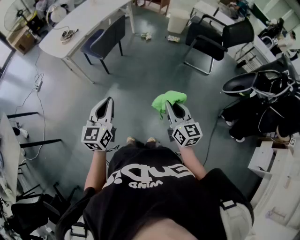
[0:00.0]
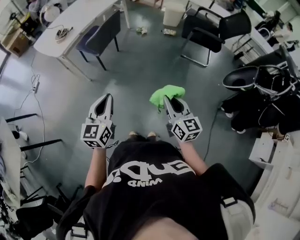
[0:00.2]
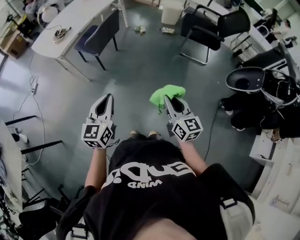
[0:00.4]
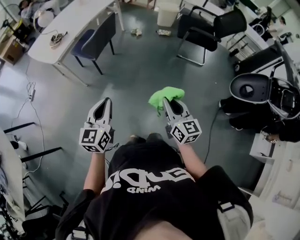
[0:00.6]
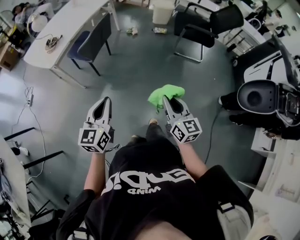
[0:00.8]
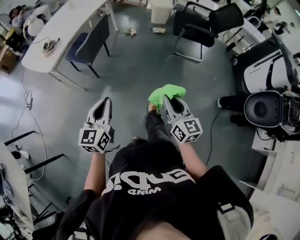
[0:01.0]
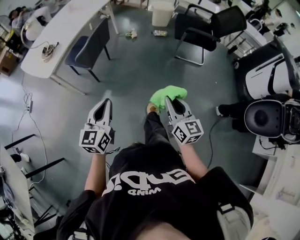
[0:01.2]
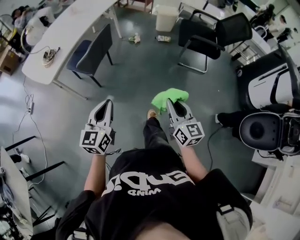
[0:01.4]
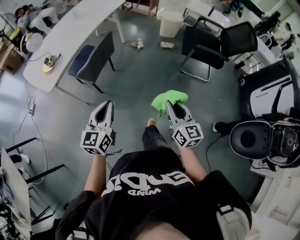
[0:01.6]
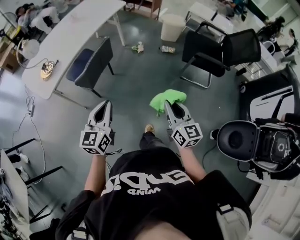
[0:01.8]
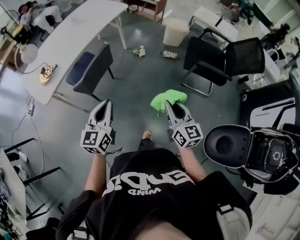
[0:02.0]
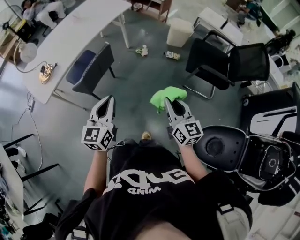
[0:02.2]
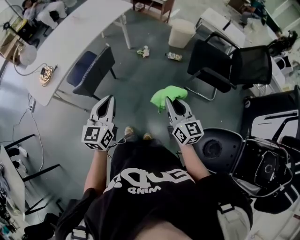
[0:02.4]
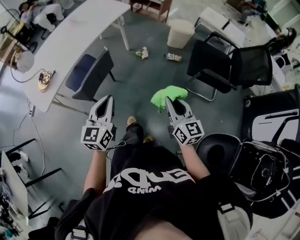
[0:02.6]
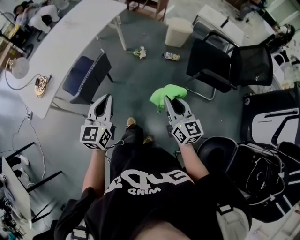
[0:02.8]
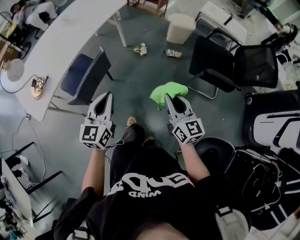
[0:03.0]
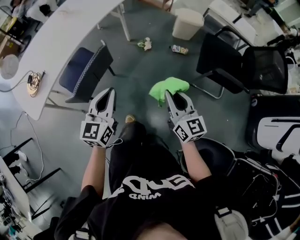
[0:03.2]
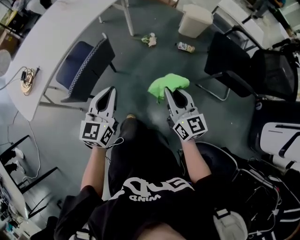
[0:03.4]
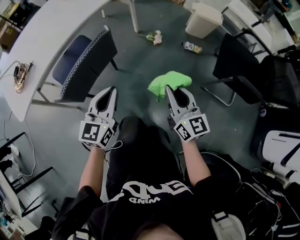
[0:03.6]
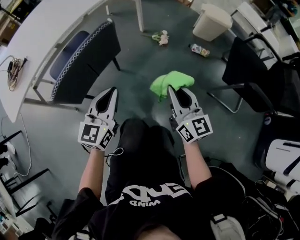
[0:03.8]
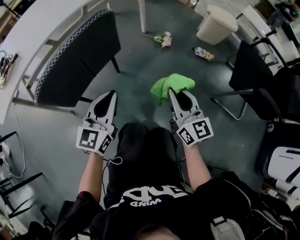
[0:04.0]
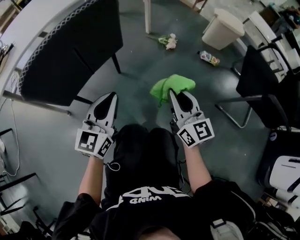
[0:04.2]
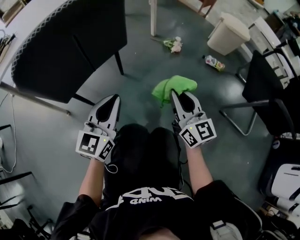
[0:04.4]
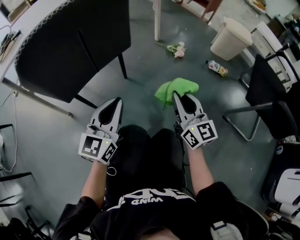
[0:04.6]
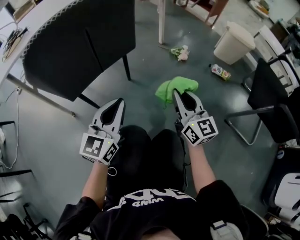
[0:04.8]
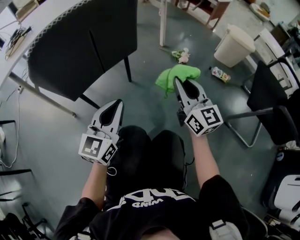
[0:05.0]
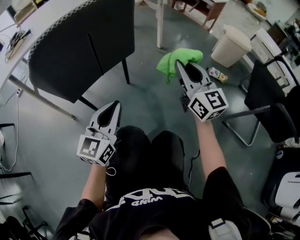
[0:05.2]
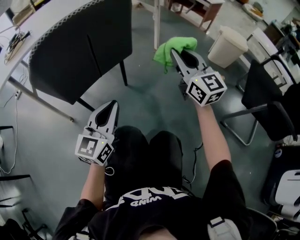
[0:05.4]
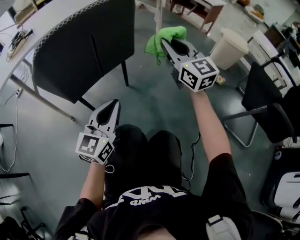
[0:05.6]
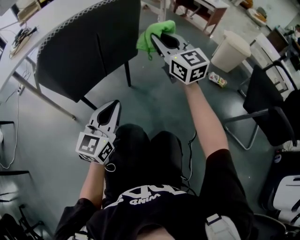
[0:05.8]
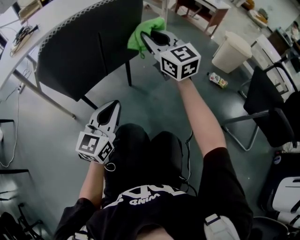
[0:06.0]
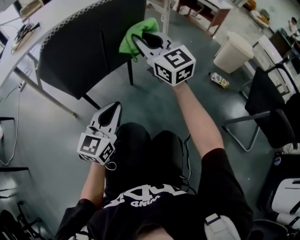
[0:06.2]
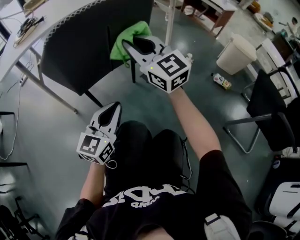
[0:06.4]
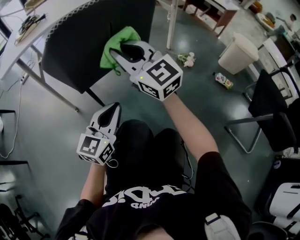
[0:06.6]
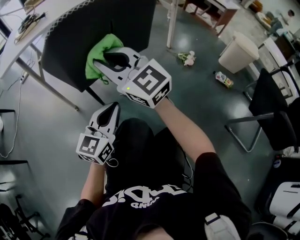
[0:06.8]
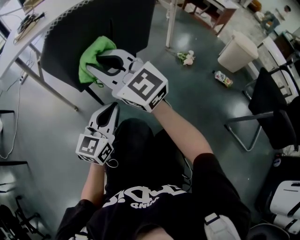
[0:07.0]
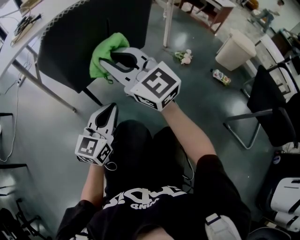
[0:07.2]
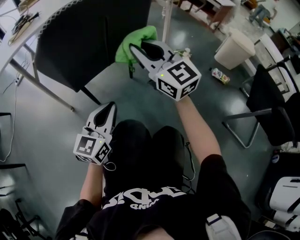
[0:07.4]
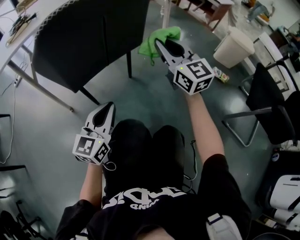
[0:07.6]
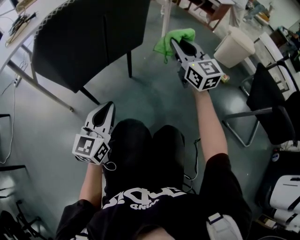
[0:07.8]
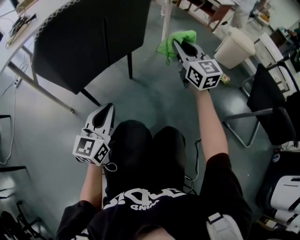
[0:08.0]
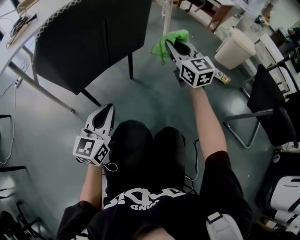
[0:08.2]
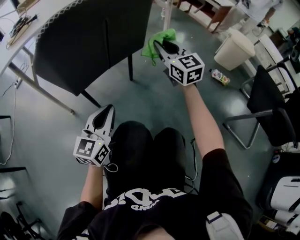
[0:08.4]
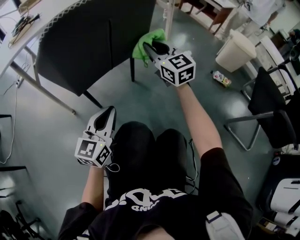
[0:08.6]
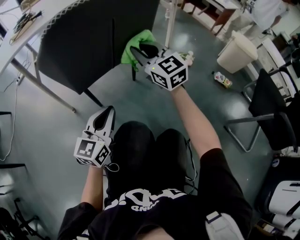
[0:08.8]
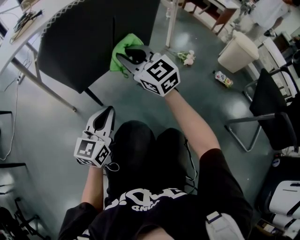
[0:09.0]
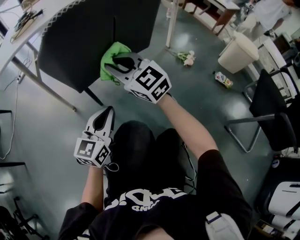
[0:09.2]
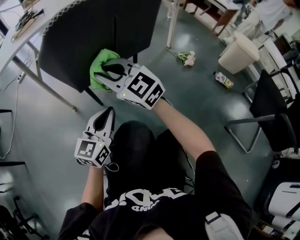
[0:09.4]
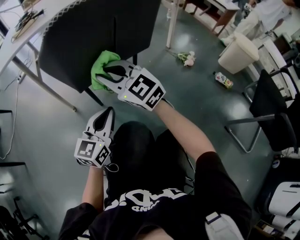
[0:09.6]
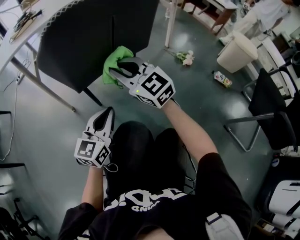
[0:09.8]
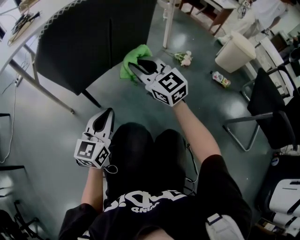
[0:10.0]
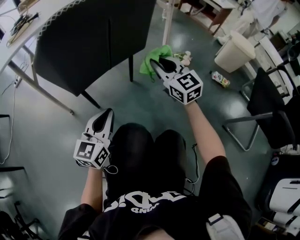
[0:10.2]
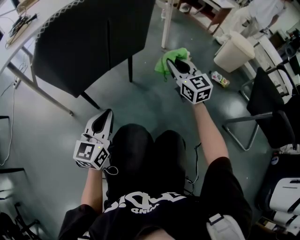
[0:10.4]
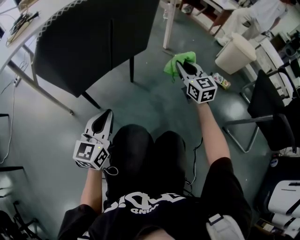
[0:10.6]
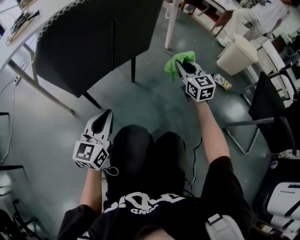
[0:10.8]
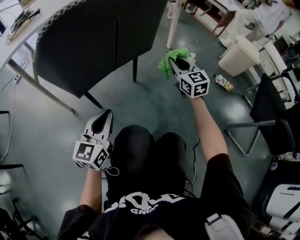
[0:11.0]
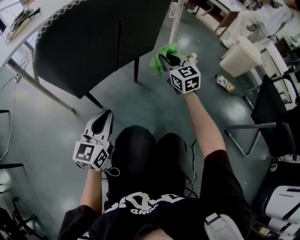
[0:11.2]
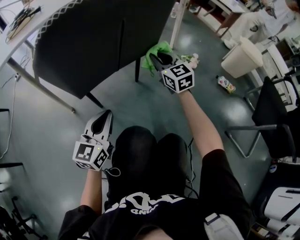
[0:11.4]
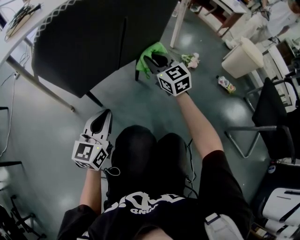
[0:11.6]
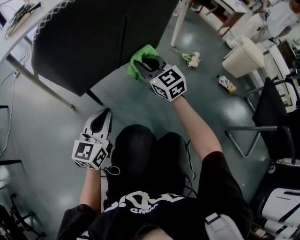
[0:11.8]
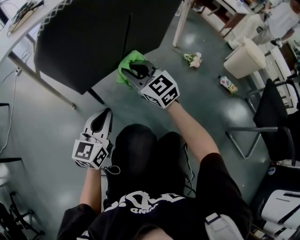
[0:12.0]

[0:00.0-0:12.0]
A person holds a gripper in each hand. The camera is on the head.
0:00.0 to 0:01.6: Both grippers travel together forward, about 25 cm.
0:01.6 to 0:03.0: The grippers both shift forward by approximately 30 cm.
0:03.0 to 0:04.4: The right gripper moves downward and forward, about 50 cm. The left gripper goes roughly 40 cm downward.
0:04.4 to 0:06.0: The right gripper travels forward, to the left and upward by about 25 cm, and rotates about 30 degrees.
0:06.0 to 0:07.6: The left gripper changes place by about 5 cm; the right gripper is displaced downward by roughly 5 cm, and moves approximately 20 cm to the left and comes back.
0:07.6 to 0:09.0: The right gripper shifts some 15 cm to the left, and turns by approximately 20 degrees.
0:09.0 to 0:10.4: The right gripper goes some 20 cm to the right, and swivels approximately 30 degrees.
0:10.4 to 0:12.0: The right gripper goes some 25 cm to the left, and swivels roughly 30 degrees.

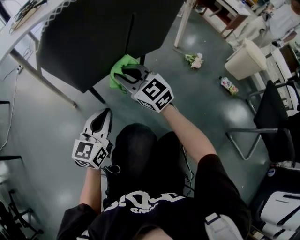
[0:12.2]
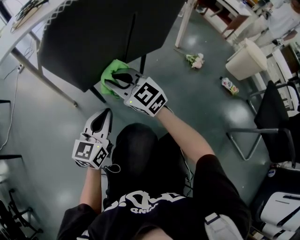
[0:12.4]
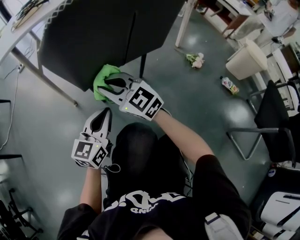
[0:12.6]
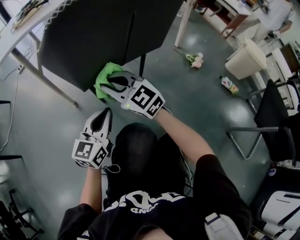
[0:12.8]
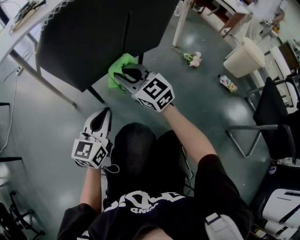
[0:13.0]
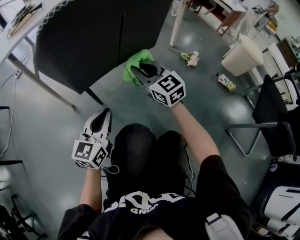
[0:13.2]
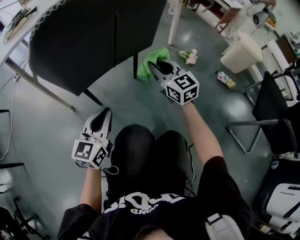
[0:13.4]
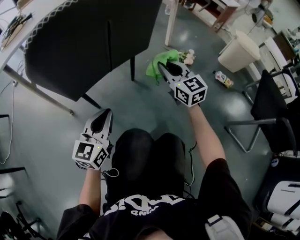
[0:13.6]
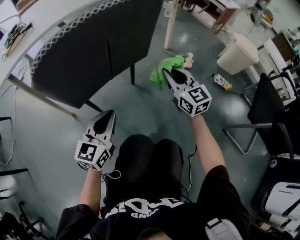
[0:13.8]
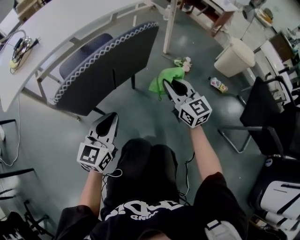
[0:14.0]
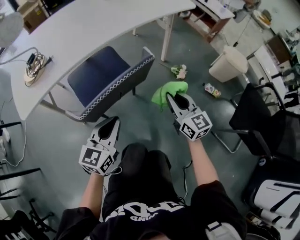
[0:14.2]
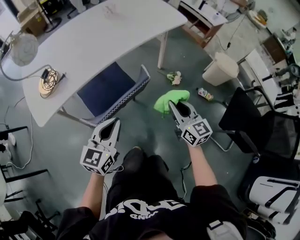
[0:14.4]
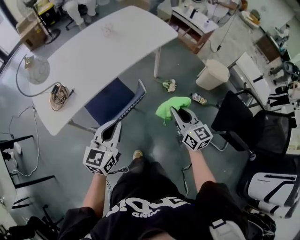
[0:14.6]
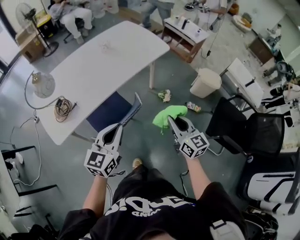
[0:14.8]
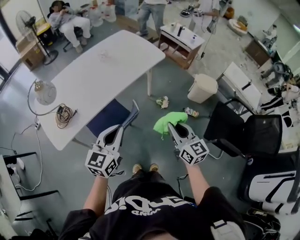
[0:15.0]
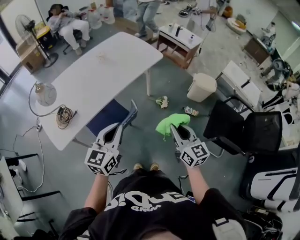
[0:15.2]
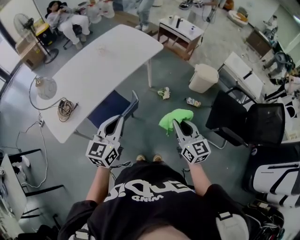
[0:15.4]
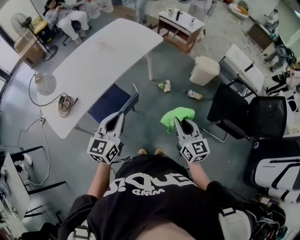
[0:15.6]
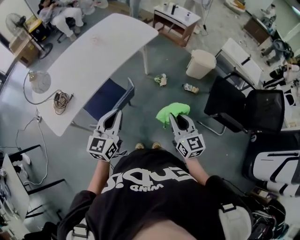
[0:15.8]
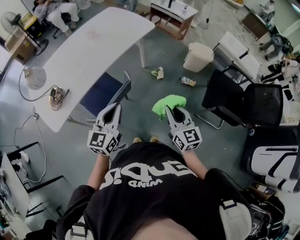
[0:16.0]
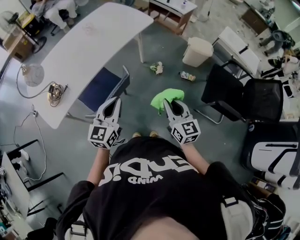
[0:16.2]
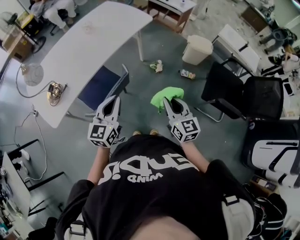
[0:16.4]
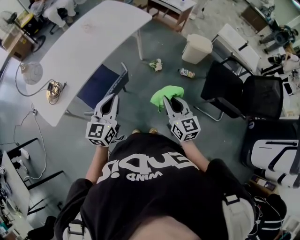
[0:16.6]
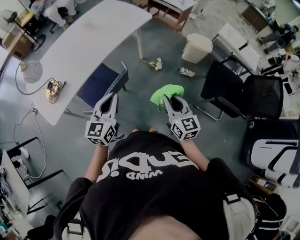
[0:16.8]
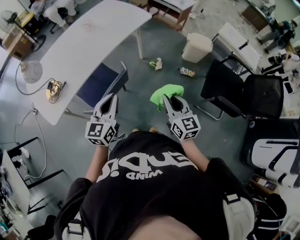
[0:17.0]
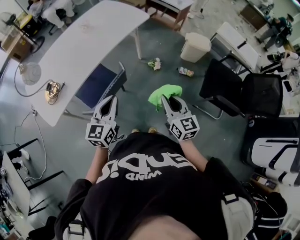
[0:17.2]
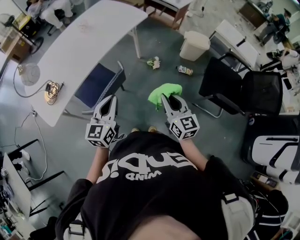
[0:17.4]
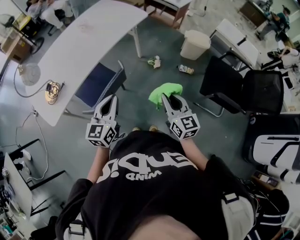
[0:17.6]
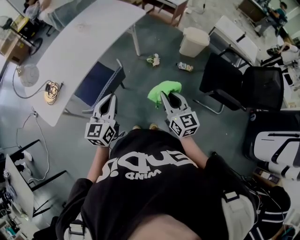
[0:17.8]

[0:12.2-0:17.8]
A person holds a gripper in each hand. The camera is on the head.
0:12.2 to 0:13.6: The right gripper heads to the right, covering some 20 cm, and turns by roughly 30 degrees.
0:13.6 to 0:15.0: Both grippers travel together upward, roughly 60 cm. The right gripper swivels about 20 degrees.
0:15.0 to 0:16.4: The right gripper is displaced backward by approximately 5 cm. Meanwhile the left gripper travels downward by about 5 cm.
0:16.4 to 0:17.8: The grippers move only a little.

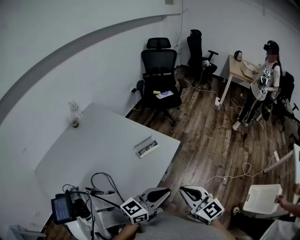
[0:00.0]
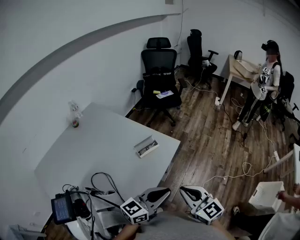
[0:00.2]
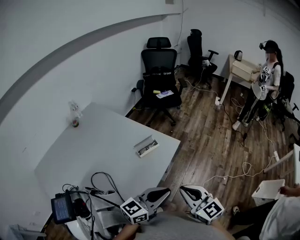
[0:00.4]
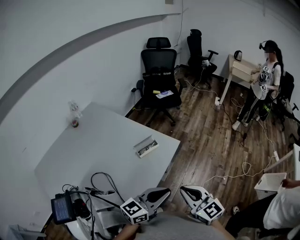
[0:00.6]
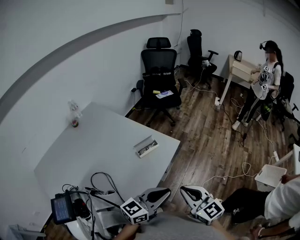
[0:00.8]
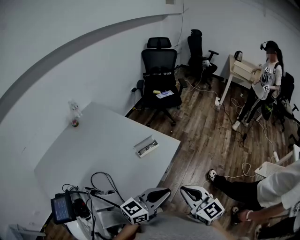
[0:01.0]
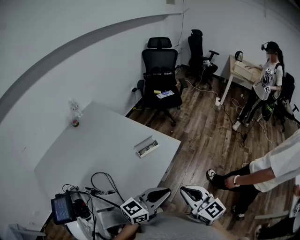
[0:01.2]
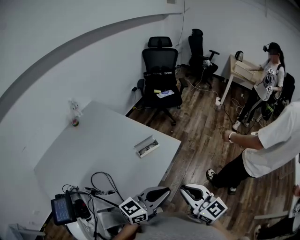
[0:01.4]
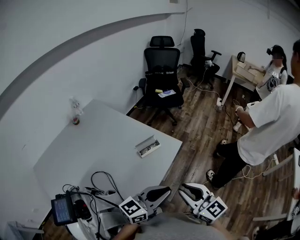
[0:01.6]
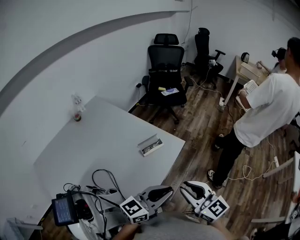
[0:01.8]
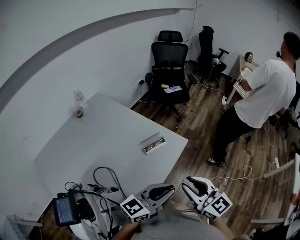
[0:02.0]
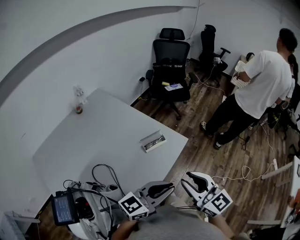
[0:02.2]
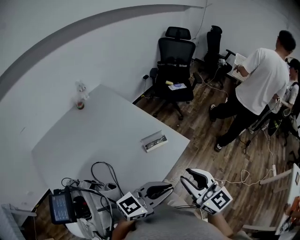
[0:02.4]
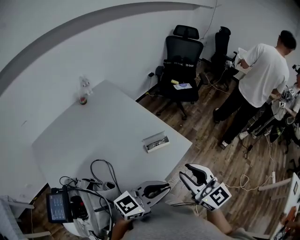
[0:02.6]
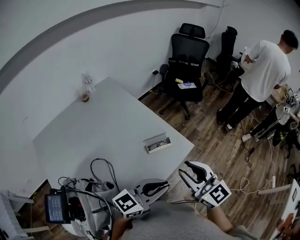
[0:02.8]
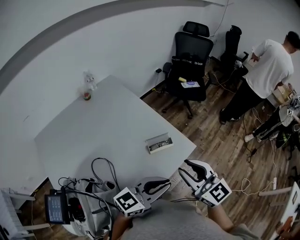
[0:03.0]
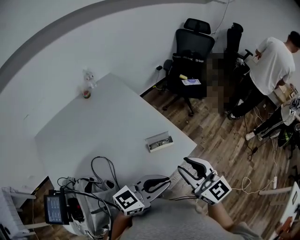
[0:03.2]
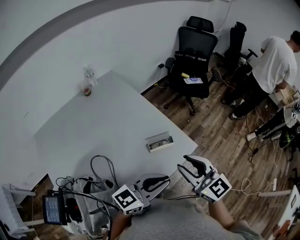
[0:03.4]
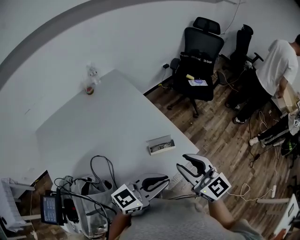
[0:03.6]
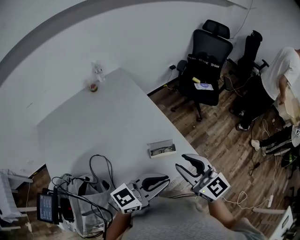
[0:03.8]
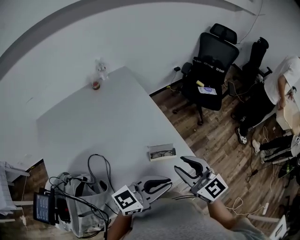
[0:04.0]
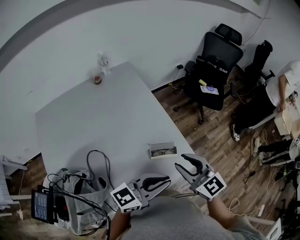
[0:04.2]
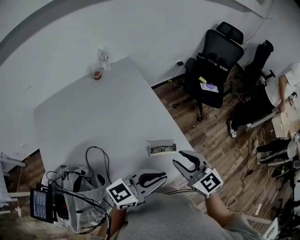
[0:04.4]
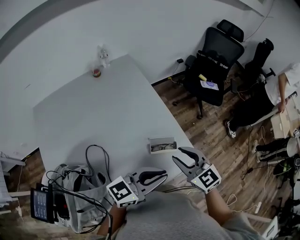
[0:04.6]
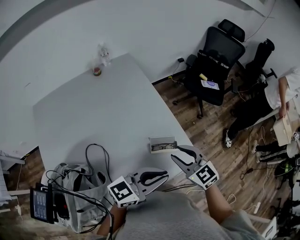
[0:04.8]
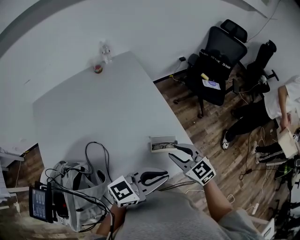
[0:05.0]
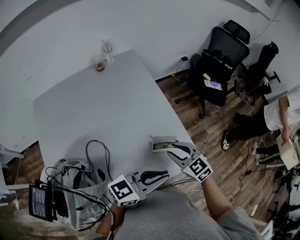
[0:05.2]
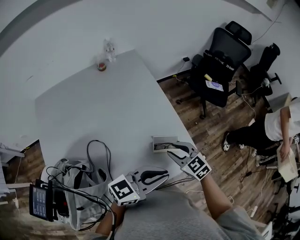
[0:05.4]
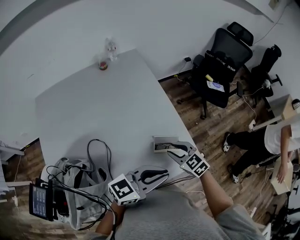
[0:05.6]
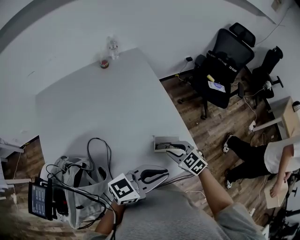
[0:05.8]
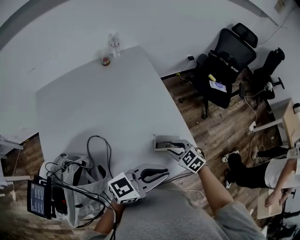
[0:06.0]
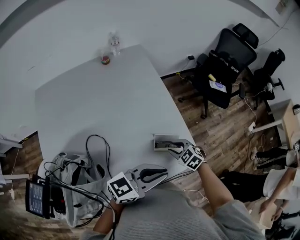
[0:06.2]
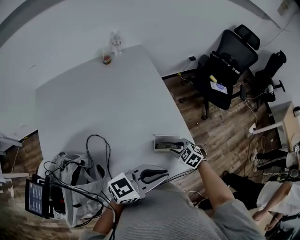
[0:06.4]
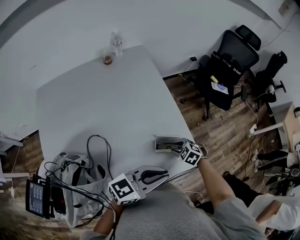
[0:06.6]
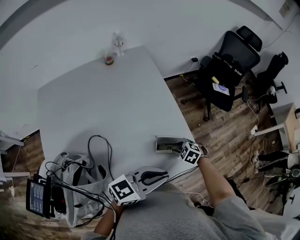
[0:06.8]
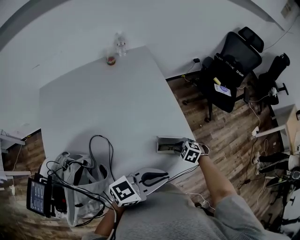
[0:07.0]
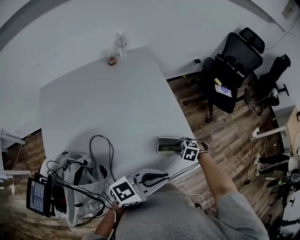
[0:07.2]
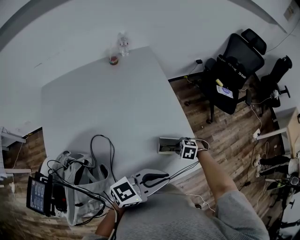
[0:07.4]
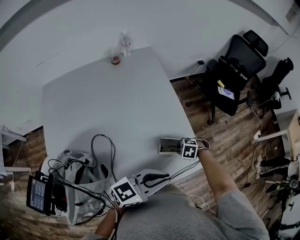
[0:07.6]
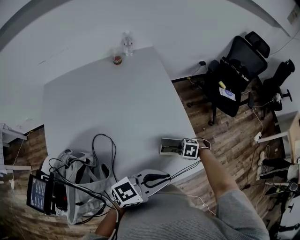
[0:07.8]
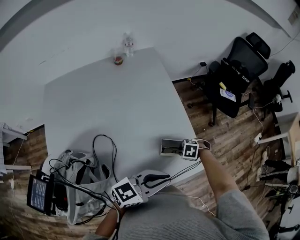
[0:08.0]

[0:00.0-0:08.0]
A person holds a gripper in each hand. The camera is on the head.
0:00.0 to 0:01.6: The grippers stay close to where they were, moving slightly.
0:01.6 to 0:03.2: The right gripper travels forward and to the left by some 15 cm. Meanwhile the left gripper moves forward, about 10 cm.
0:03.2 to 0:04.8: The right gripper goes approximately 15 cm forward and downward, and swivels about 30 degrees. The left gripper heads forward, covering some 10 cm.
0:04.8 to 0:06.4: The right gripper shifts about 20 cm downward, and tilts its fingers about 30 degrees downward.
0:06.4 to 0:08.0: The right gripper is displaced downward by some 5 cm, and changes its angle by about 30 degrees.
